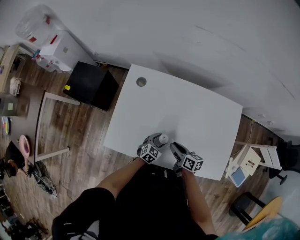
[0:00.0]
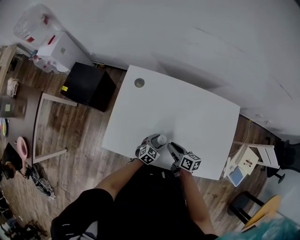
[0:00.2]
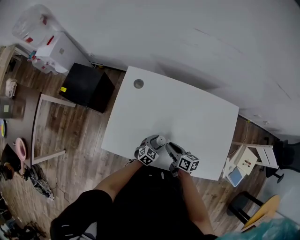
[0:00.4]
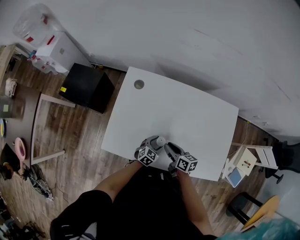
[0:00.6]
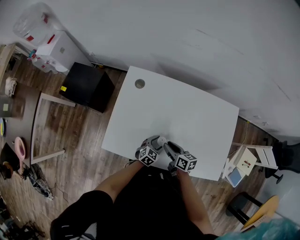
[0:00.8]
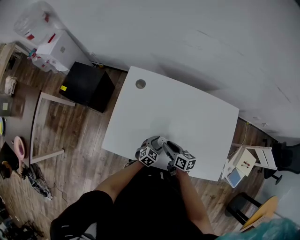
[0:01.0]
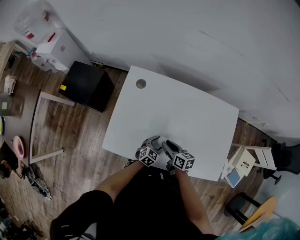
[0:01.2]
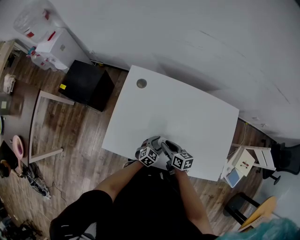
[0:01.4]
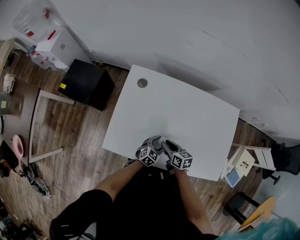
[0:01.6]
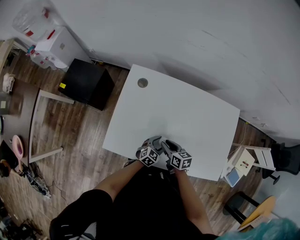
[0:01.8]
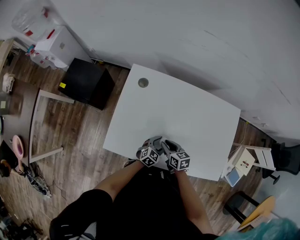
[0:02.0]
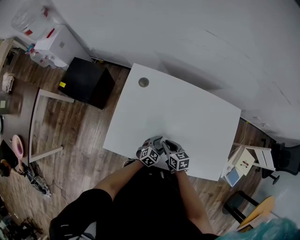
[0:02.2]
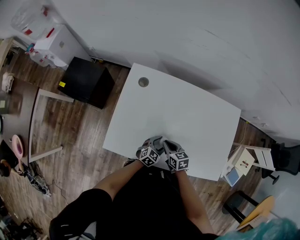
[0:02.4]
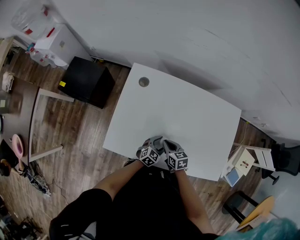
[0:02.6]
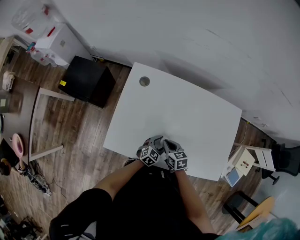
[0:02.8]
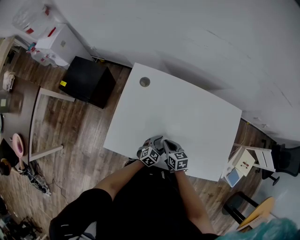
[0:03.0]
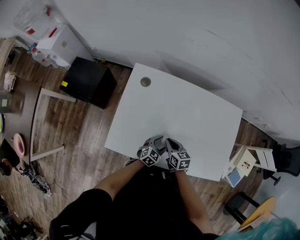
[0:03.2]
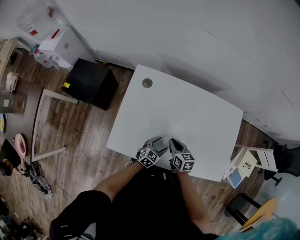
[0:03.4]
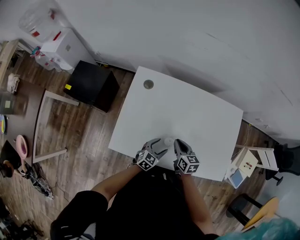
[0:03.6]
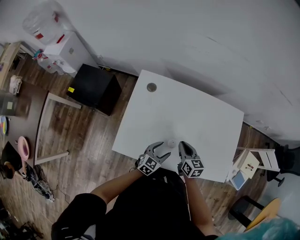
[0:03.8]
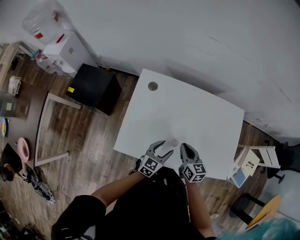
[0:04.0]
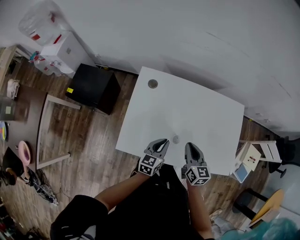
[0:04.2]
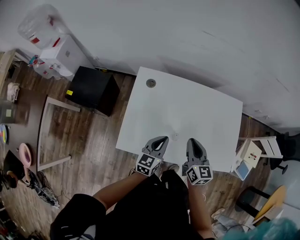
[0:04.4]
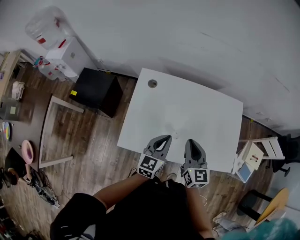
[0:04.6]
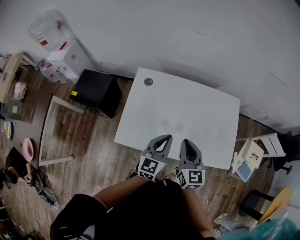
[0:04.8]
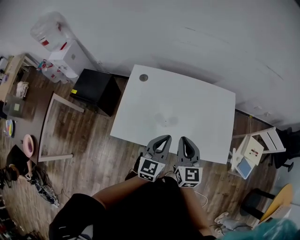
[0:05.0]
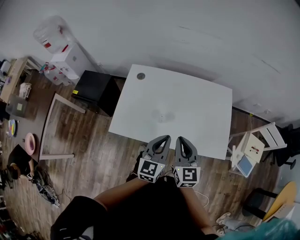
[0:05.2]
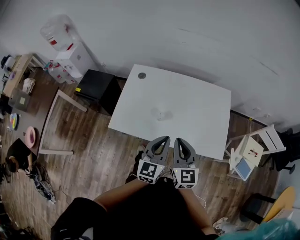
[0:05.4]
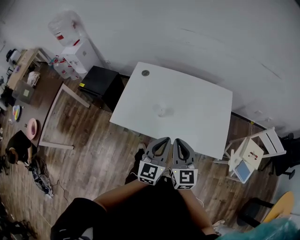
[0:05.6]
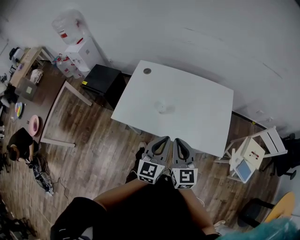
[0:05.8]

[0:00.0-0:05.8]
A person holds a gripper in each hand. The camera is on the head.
0:00.0 to 0:01.4: The right gripper heads to the left, covering approximately 5 cm.
0:01.4 to 0:02.8: The right gripper closes its fingers.
0:02.8 to 0:04.4: The left gripper moves upward and to the left, about 25 cm, turns by roughly 30 degrees, and closes, while the right gripper travels upward by some 20 cm, and rotates roughly 40 degrees.
0:04.4 to 0:05.8: The right gripper is displaced backward and to the right by roughly 25 cm. The left gripper moves backward, to the right and upward, approximately 30 cm, and swivels approximately 20 degrees.

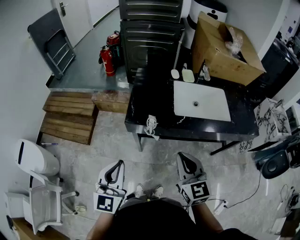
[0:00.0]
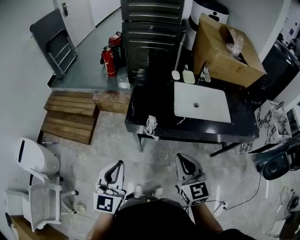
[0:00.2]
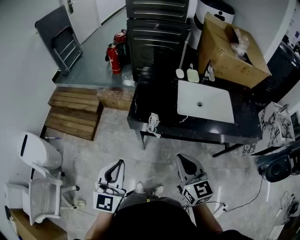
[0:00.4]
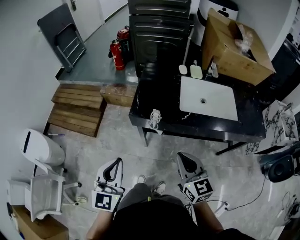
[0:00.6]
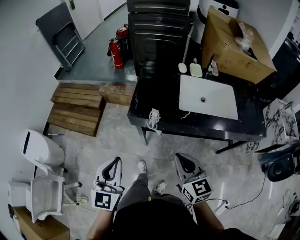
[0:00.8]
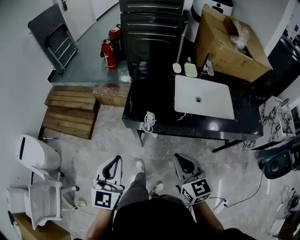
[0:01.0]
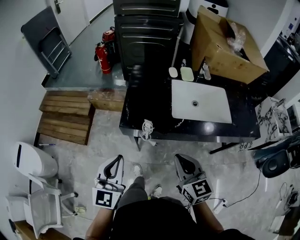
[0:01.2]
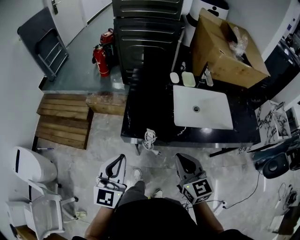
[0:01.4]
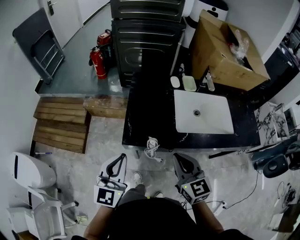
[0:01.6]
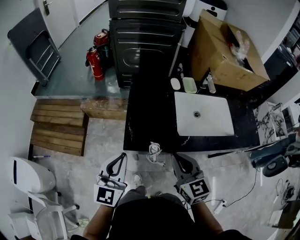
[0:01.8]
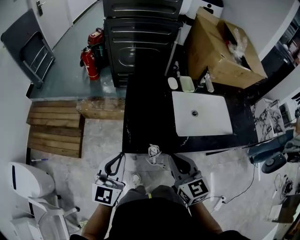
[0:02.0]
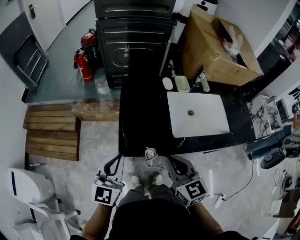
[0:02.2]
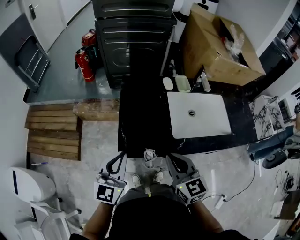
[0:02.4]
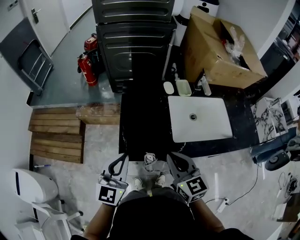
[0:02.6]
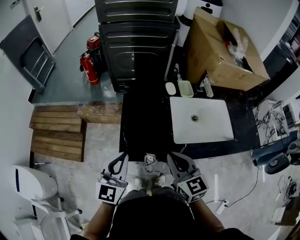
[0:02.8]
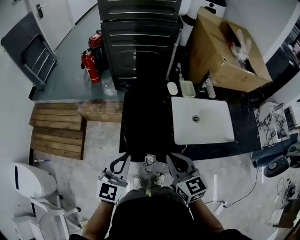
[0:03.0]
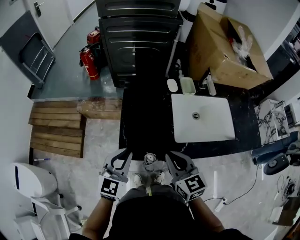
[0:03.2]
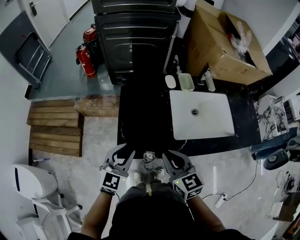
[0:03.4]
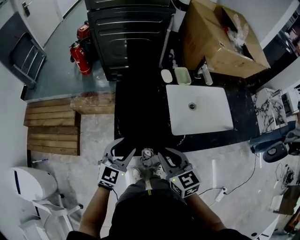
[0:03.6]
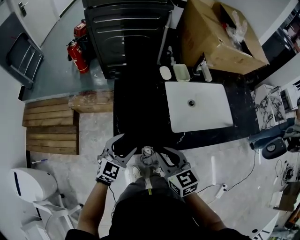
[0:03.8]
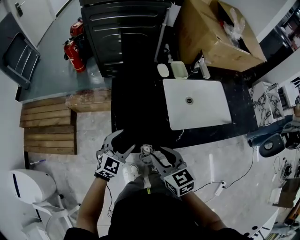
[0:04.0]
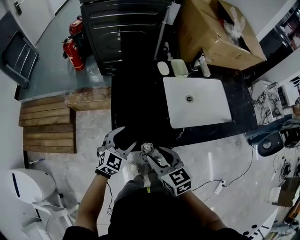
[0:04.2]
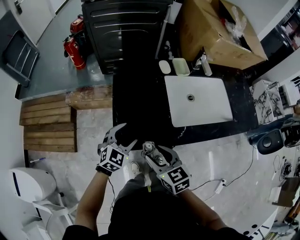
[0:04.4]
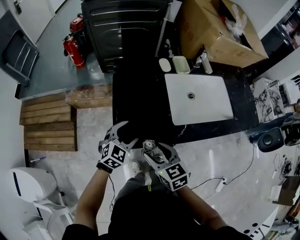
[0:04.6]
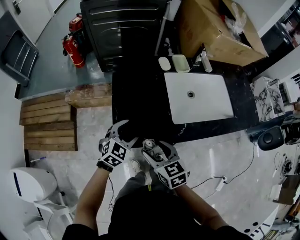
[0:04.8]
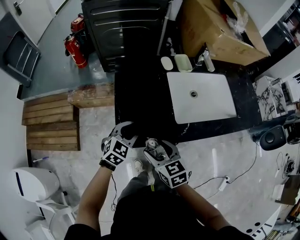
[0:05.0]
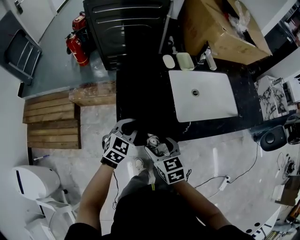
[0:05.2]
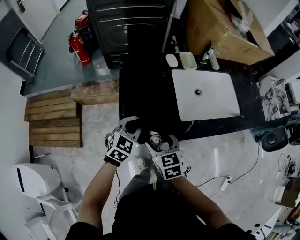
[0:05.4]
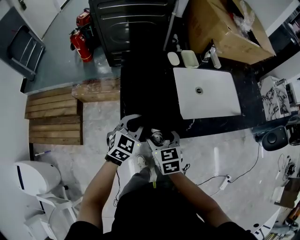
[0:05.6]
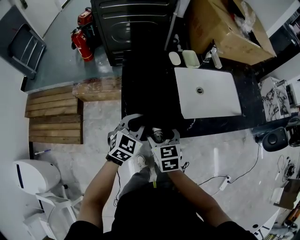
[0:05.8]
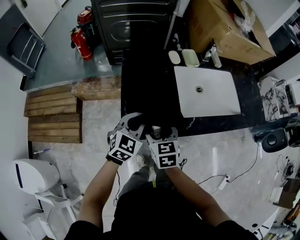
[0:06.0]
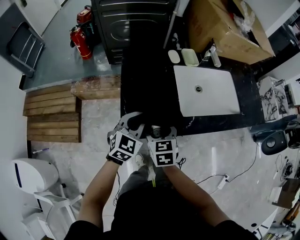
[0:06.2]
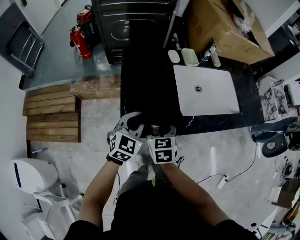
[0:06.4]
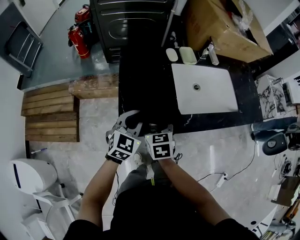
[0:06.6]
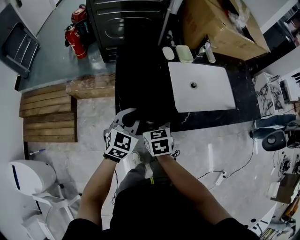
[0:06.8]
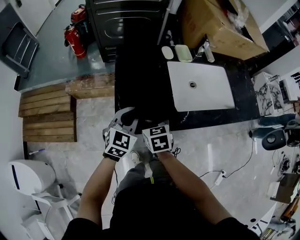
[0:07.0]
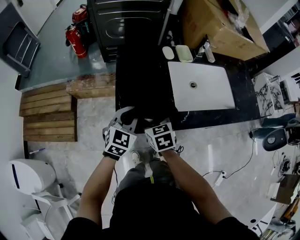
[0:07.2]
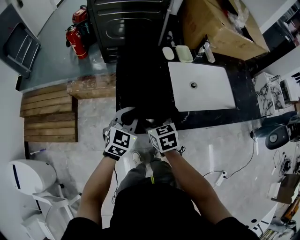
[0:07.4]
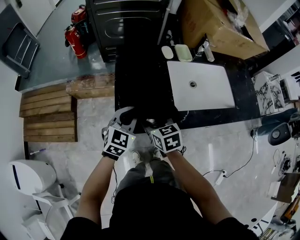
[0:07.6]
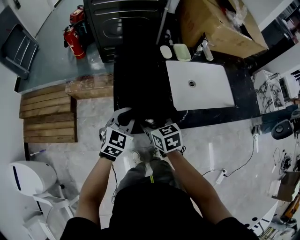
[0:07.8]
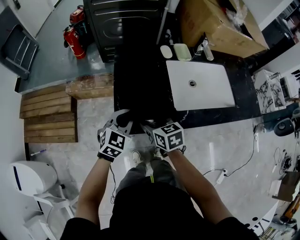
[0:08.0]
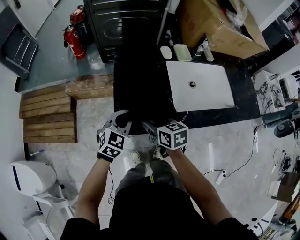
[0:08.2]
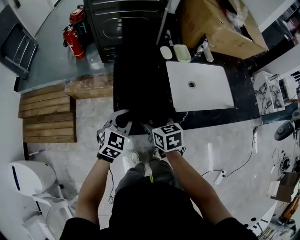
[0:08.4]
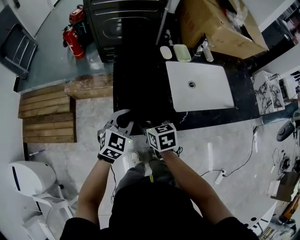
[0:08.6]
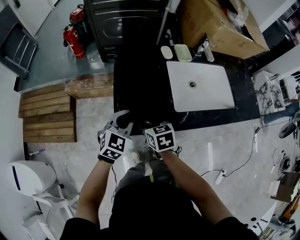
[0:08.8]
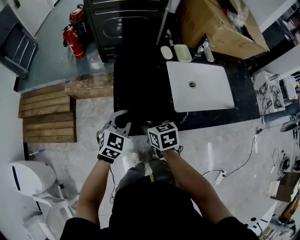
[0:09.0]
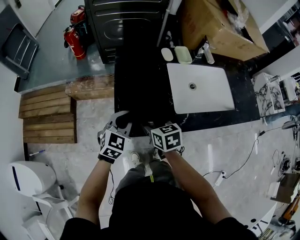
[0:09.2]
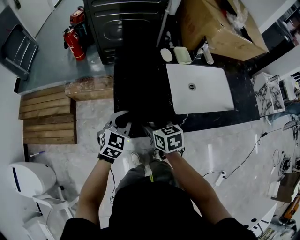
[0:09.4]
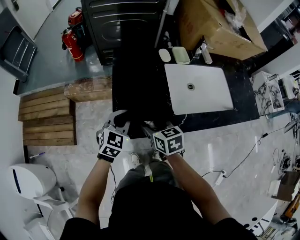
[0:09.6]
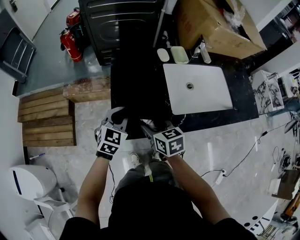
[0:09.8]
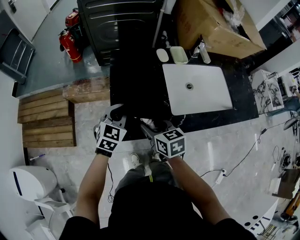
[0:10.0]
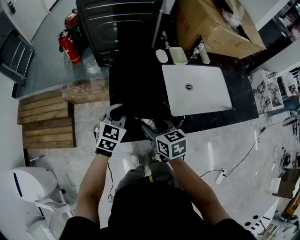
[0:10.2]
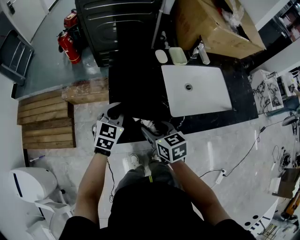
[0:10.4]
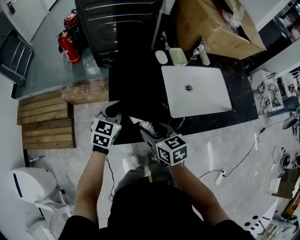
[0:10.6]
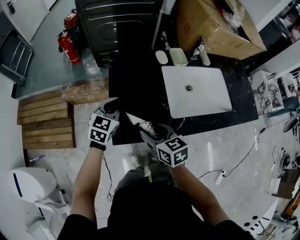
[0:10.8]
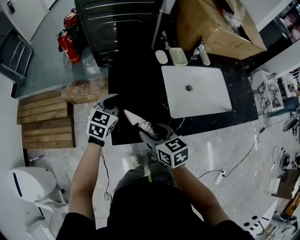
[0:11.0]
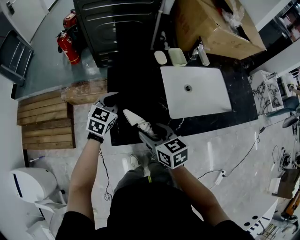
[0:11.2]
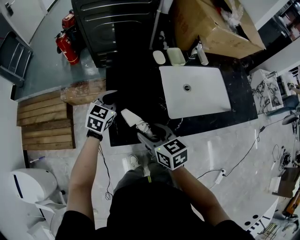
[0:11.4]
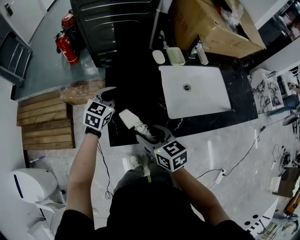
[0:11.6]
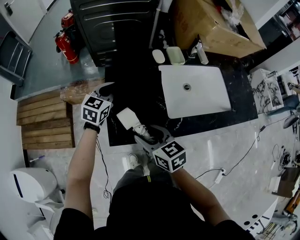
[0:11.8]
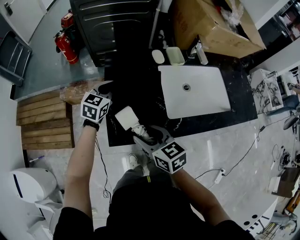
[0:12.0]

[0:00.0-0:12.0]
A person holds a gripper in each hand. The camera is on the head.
0:00.0 to 0:01.6: Both grippers travel together forward, approximately 15 cm.
0:01.6 to 0:03.0: Both grippers travel together forward, roughly 10 cm.
0:03.0 to 0:04.4: The right gripper goes approximately 10 cm downward and to the left, and opens up, while the left gripper goes some 15 cm downward and forward, turns by some 30 degrees, and opens.
0:04.4 to 0:06.0: The left gripper closes. The right gripper is displaced forward by roughly 5 cm, and opens its fingers.
0:06.0 to 0:07.6: The grippers move only a little.
0:07.6 to 0:09.0: The grippers move only a little.
0:09.0 to 0:10.4: The left gripper travels forward by about 5 cm.
0:10.4 to 0:12.0: The left gripper travels forward by some 10 cm.

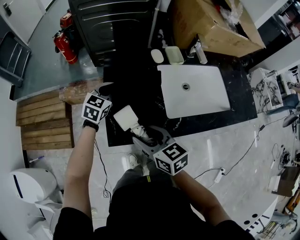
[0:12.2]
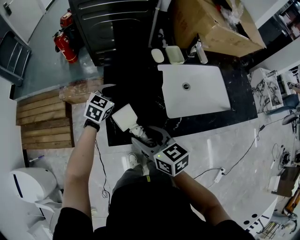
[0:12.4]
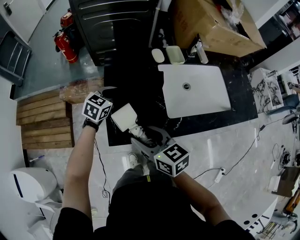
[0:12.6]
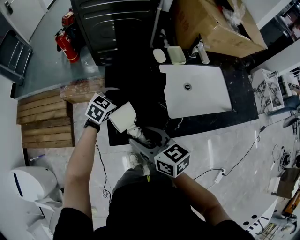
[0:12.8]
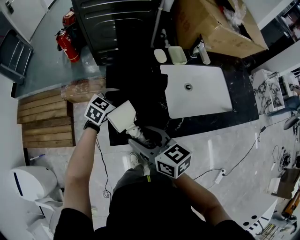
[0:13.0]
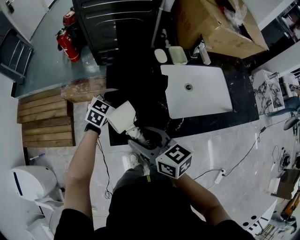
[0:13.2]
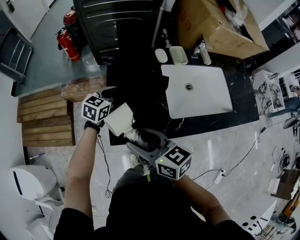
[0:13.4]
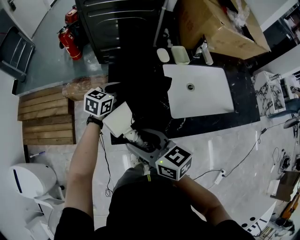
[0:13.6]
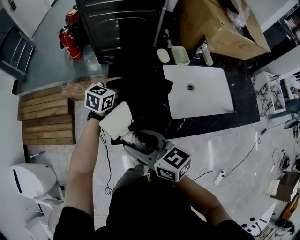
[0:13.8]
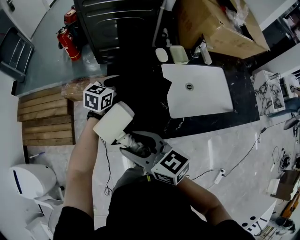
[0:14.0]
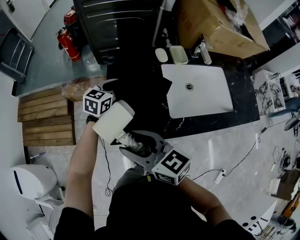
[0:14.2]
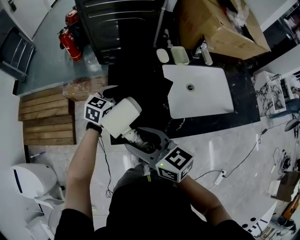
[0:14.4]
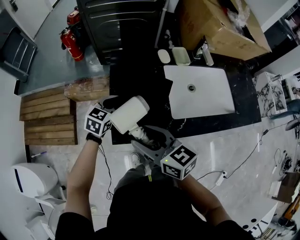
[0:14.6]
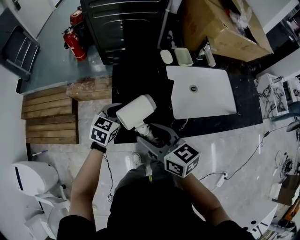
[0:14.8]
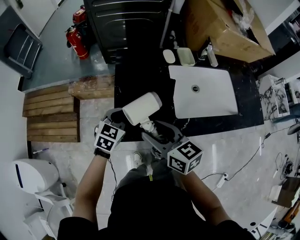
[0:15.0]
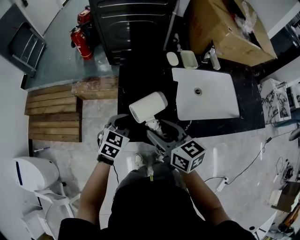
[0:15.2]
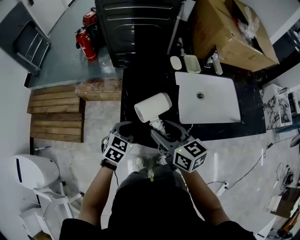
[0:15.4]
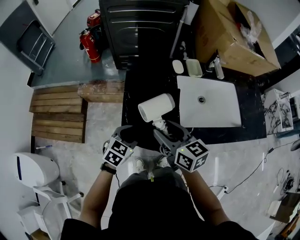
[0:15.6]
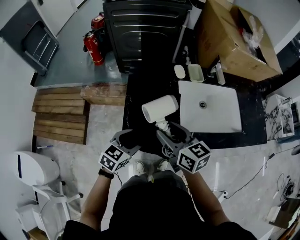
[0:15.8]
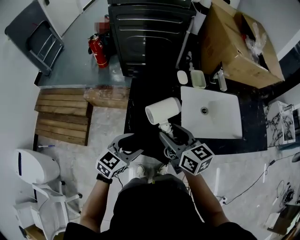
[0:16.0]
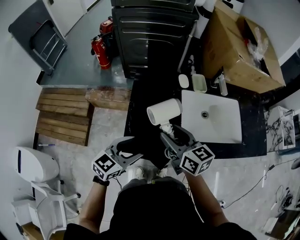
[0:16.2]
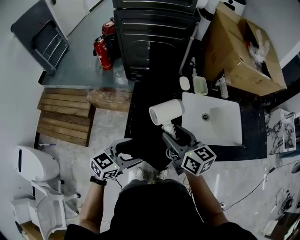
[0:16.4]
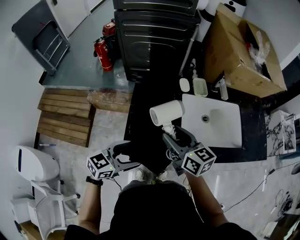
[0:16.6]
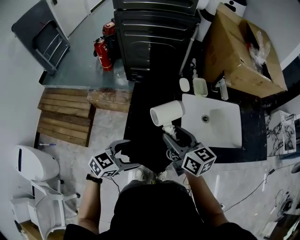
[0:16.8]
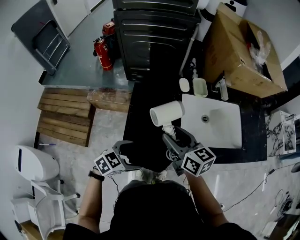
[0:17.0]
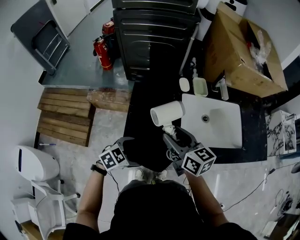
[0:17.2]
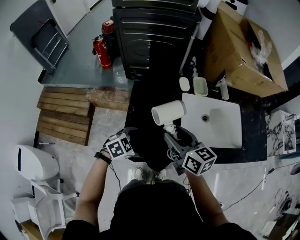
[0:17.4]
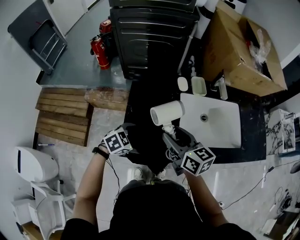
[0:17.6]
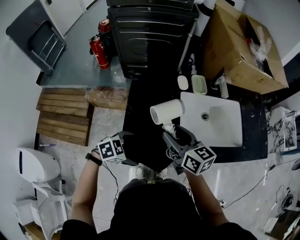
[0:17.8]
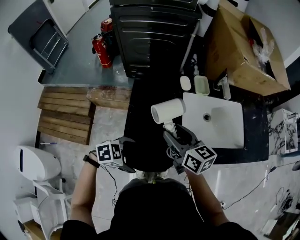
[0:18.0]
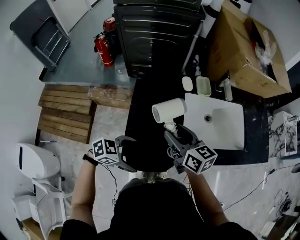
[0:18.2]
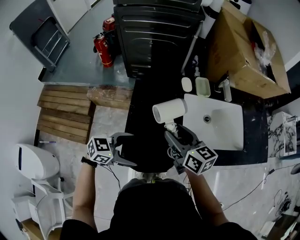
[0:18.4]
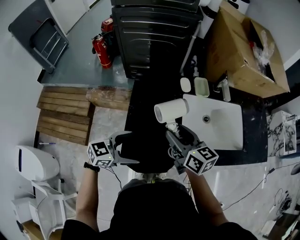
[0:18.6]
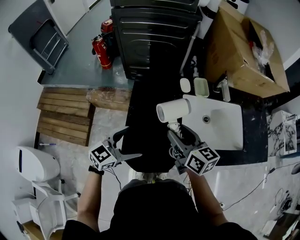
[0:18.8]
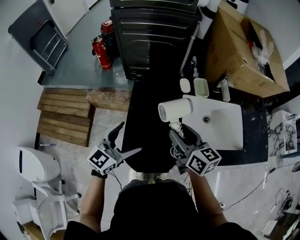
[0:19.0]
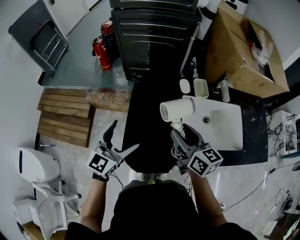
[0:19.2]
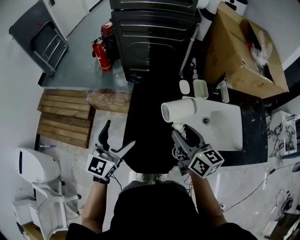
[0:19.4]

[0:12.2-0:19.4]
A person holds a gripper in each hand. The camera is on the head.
0:12.2 to 0:13.6: The right gripper moves approximately 5 cm.
0:13.6 to 0:15.0: The left gripper goes some 10 cm backward.
0:15.0 to 0:16.6: The left gripper travels backward and upward by about 15 cm, changes its angle by some 30 degrees, and opens. Meanwhile the right gripper is displaced forward by about 5 cm.
0:16.6 to 0:18.0: The left gripper shifts some 10 cm downward, and swivels approximately 50 degrees.
0:18.0 to 0:19.4: The left gripper heads upward, covering approximately 15 cm, and points its fingers some 40 degrees further upward.
